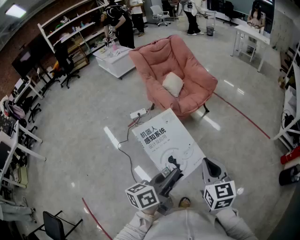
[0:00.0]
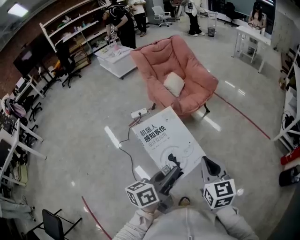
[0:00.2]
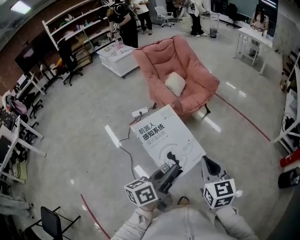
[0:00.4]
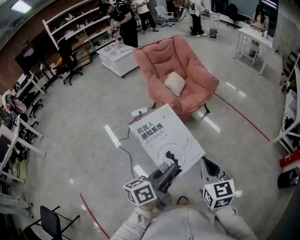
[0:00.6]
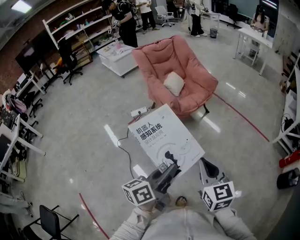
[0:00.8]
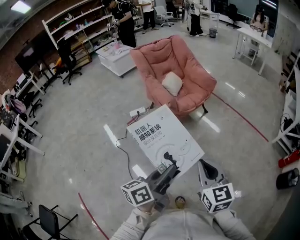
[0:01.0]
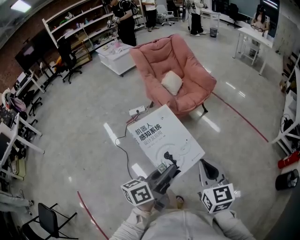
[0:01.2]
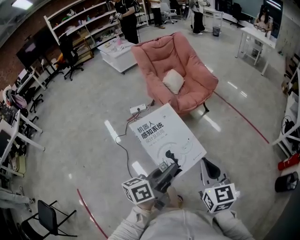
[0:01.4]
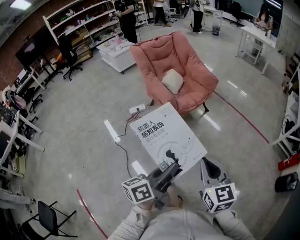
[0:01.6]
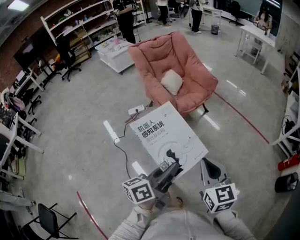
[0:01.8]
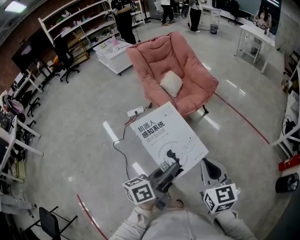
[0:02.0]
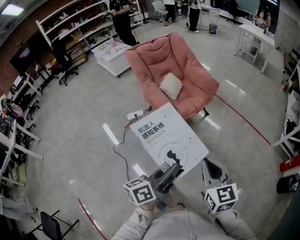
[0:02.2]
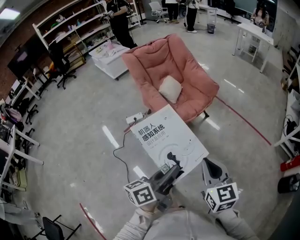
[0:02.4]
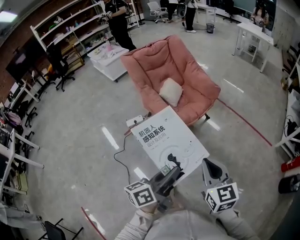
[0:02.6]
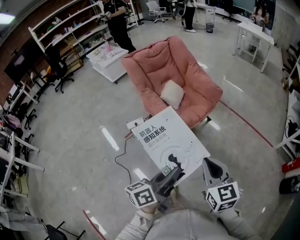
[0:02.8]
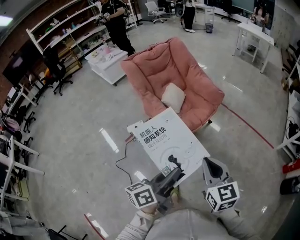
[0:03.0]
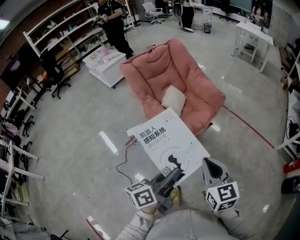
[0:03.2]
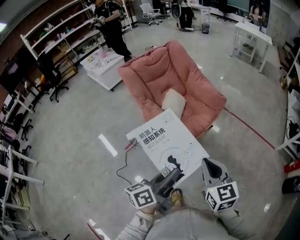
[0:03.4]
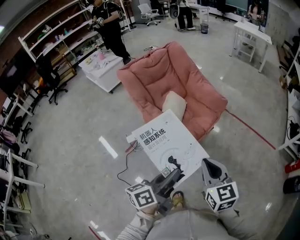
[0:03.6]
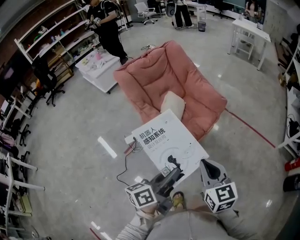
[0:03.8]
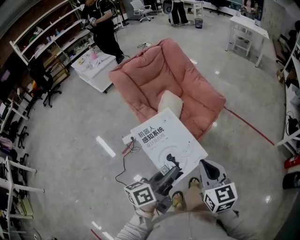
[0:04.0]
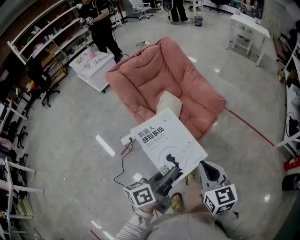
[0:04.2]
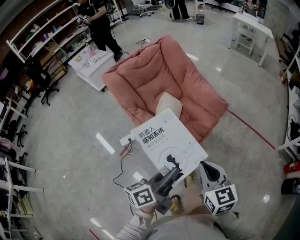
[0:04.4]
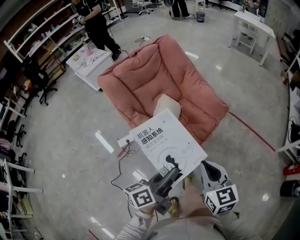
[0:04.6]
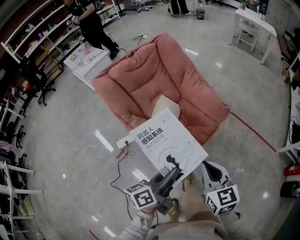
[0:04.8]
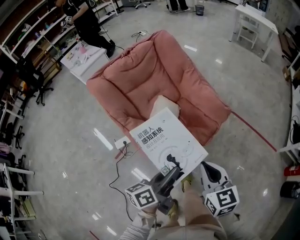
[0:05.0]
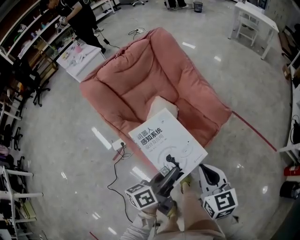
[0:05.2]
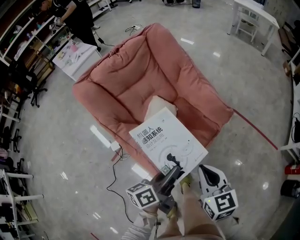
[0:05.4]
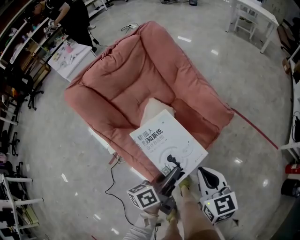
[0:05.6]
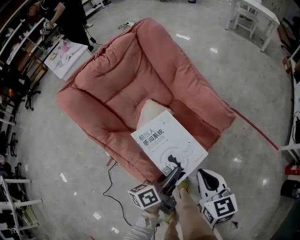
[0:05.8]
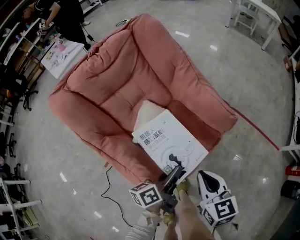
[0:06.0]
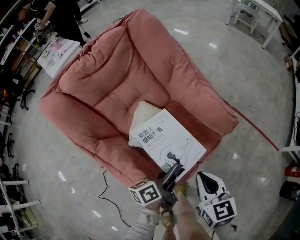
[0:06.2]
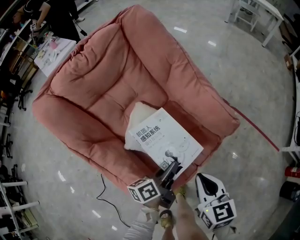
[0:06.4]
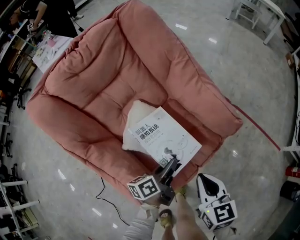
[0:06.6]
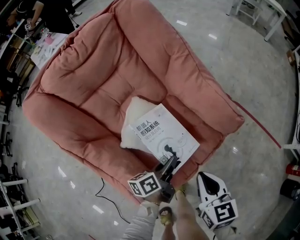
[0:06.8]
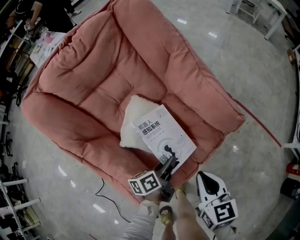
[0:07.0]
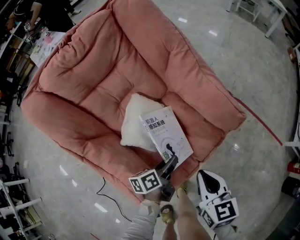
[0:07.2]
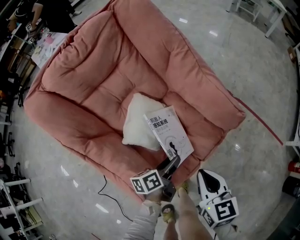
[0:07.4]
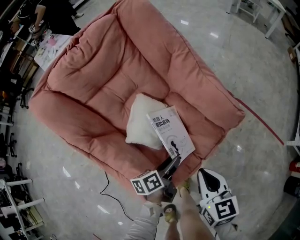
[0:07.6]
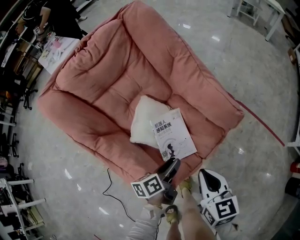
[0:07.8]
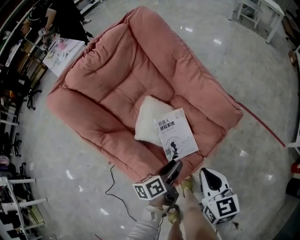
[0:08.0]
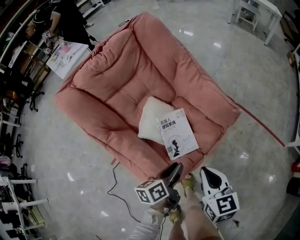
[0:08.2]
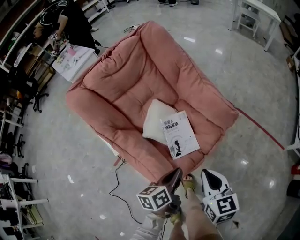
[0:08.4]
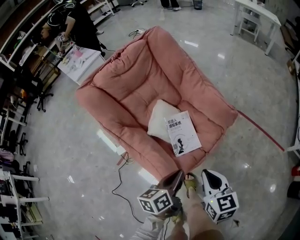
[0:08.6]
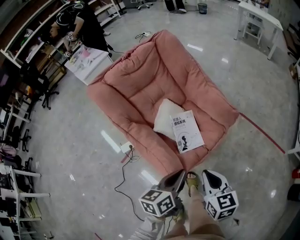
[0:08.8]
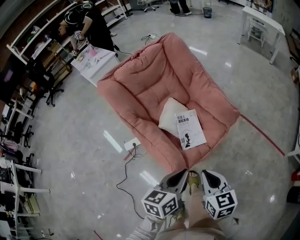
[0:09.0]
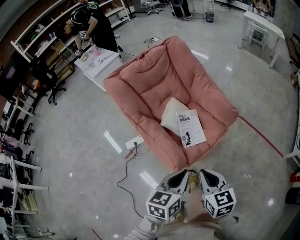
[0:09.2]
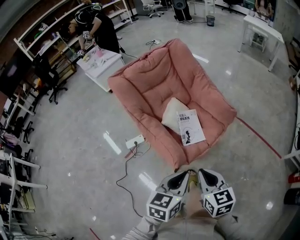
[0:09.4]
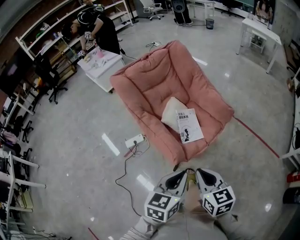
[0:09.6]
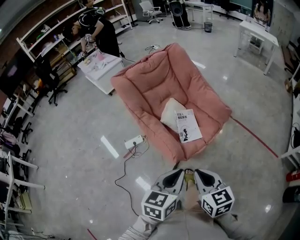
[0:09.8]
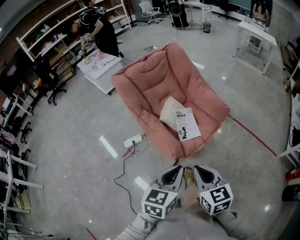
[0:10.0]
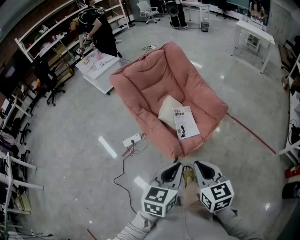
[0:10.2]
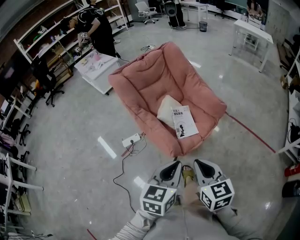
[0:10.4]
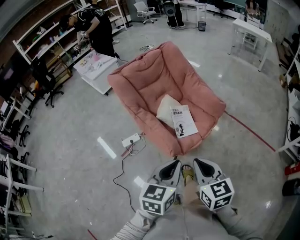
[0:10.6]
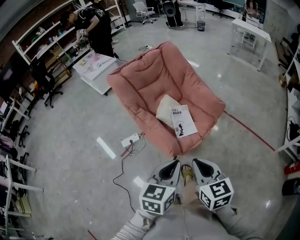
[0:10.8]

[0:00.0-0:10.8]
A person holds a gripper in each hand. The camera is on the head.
0:00.0 to 0:01.6: The grippers move only a little.
0:01.6 to 0:03.0: The two grippers go about 20 cm forward and to the left.
0:03.0 to 0:04.6: Both grippers move forward, some 20 cm.
0:04.6 to 0:06.2: The two grippers go some 25 cm forward and downward.
0:06.2 to 0:07.8: The left gripper moves downward, roughly 5 cm, and opens its fingers.
0:07.8 to 0:09.2: The right gripper travels backward and upward by some 20 cm; the left gripper moves upward and backward, approximately 30 cm, twists about 40 degrees clockwise, seen from behind, and closes up.
0:09.2 to 0:10.8: Both grippers travel together backward and upward, some 10 cm.

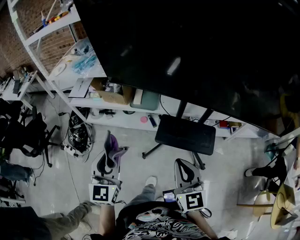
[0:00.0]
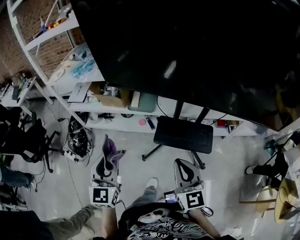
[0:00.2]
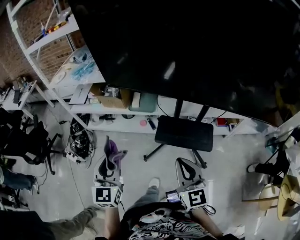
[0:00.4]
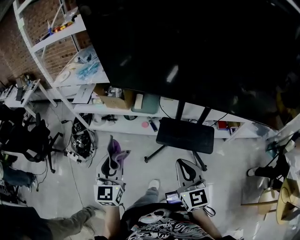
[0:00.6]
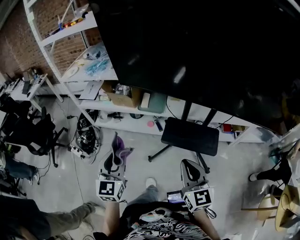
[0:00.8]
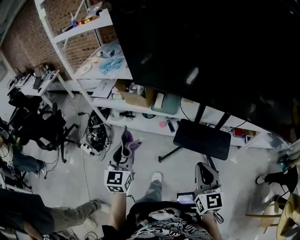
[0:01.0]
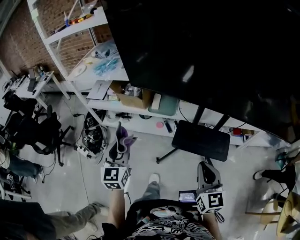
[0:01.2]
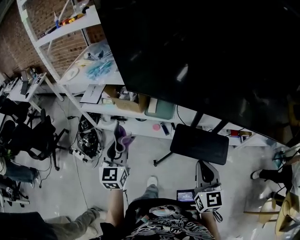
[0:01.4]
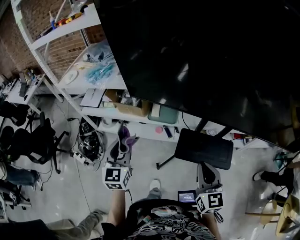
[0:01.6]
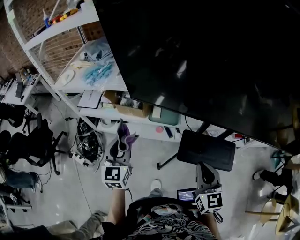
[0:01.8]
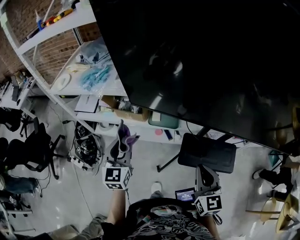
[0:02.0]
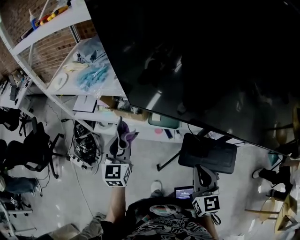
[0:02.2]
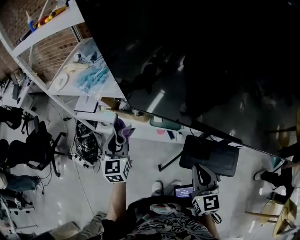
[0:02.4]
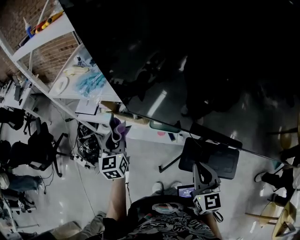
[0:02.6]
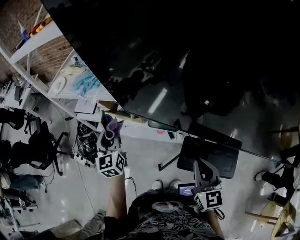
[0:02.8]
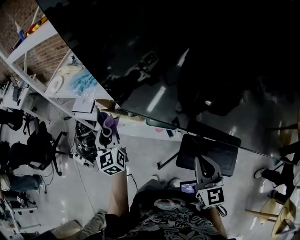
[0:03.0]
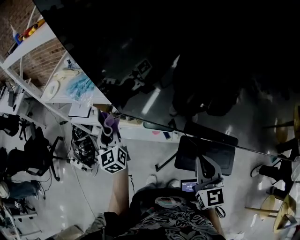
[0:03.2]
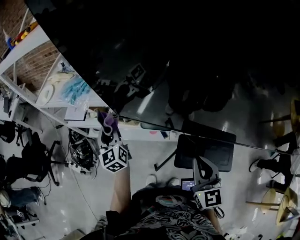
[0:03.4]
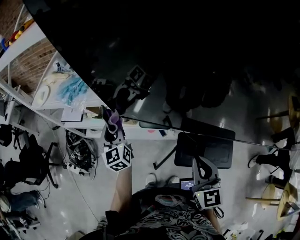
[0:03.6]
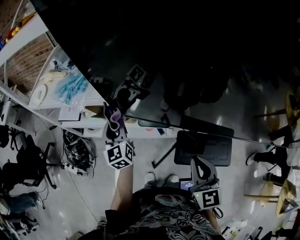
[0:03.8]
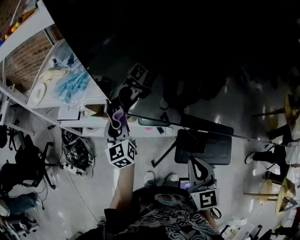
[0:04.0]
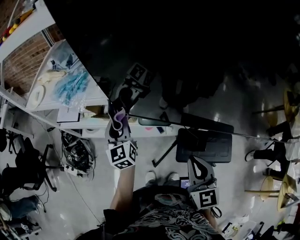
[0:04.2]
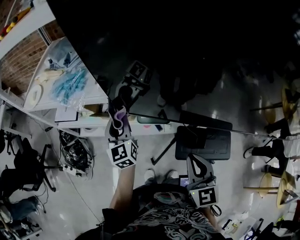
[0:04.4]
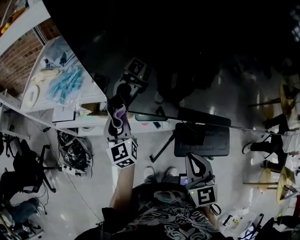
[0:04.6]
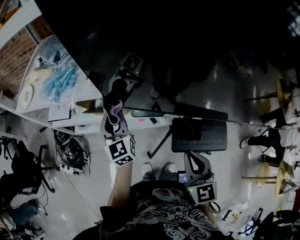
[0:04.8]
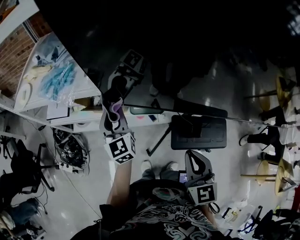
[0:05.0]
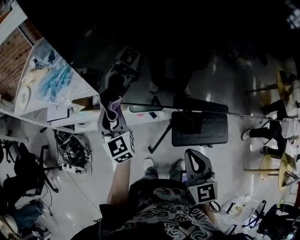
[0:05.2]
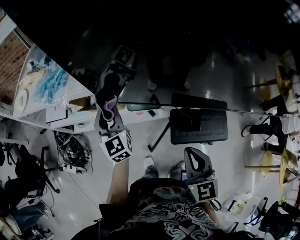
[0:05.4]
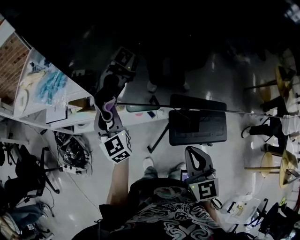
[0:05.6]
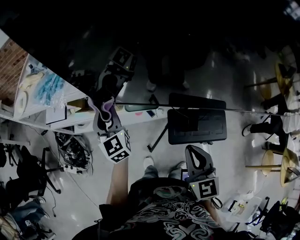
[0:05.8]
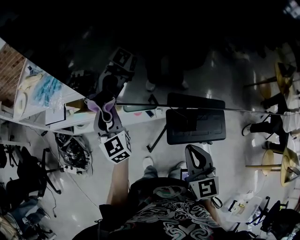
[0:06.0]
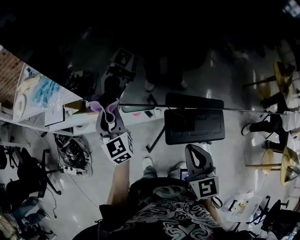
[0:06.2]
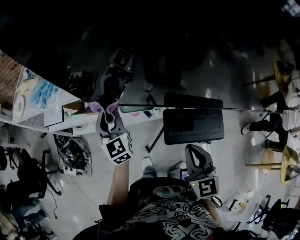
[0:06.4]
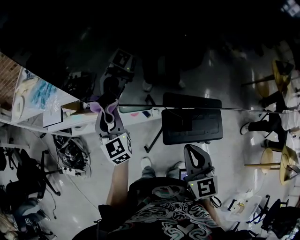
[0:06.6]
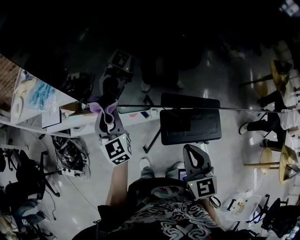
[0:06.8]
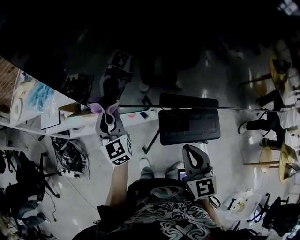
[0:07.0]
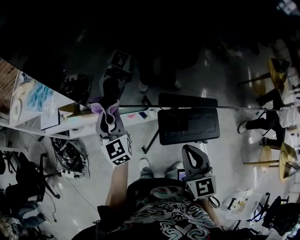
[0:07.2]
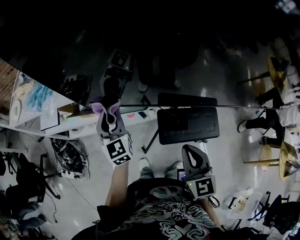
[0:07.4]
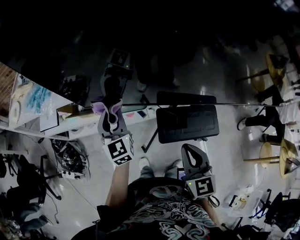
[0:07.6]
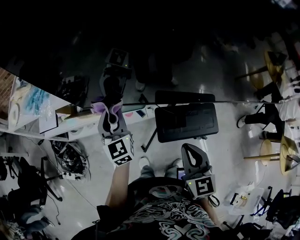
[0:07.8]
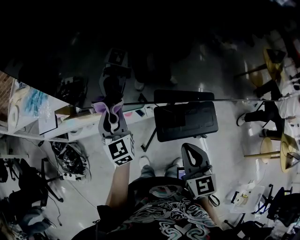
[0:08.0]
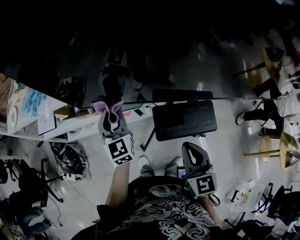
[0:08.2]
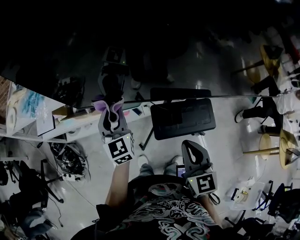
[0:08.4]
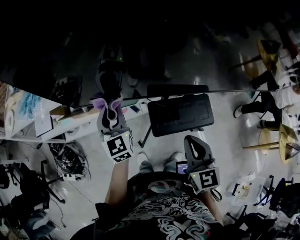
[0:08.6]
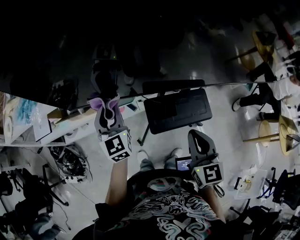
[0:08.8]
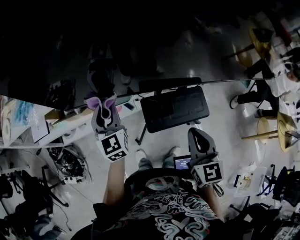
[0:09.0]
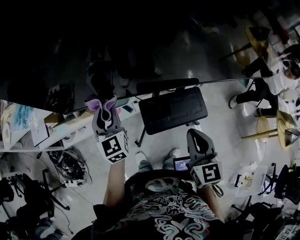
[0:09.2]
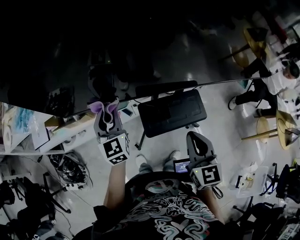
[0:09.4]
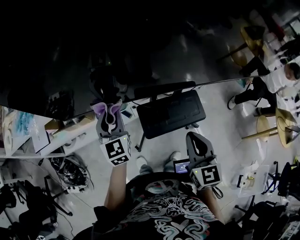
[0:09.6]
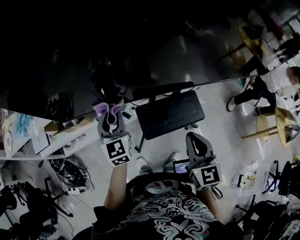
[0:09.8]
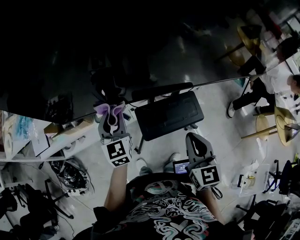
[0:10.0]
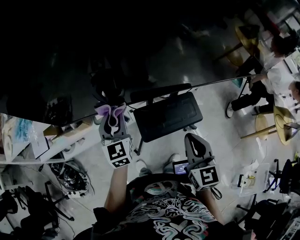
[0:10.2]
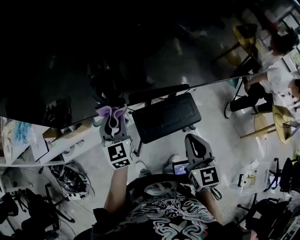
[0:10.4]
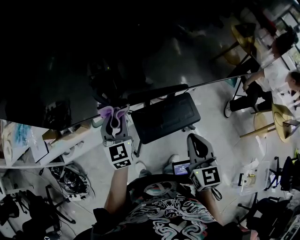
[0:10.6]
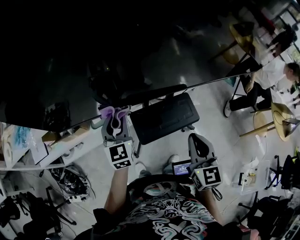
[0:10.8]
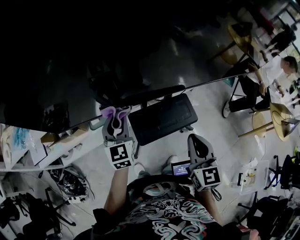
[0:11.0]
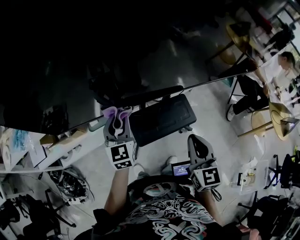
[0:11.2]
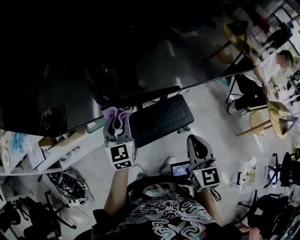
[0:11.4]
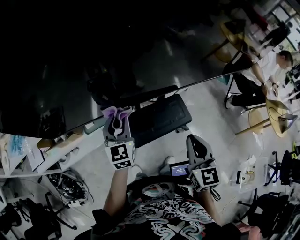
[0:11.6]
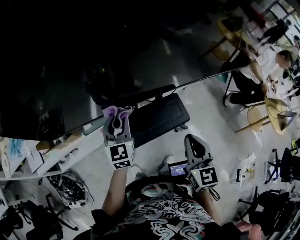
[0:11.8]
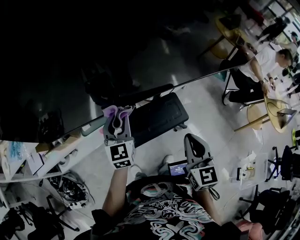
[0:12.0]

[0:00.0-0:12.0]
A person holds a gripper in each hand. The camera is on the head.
0:00.0 to 0:01.6: The right gripper travels forward by some 10 cm. The left gripper heads forward and to the left, covering about 20 cm.
0:01.6 to 0:03.0: The two grippers go roughly 20 cm forward. The left gripper turns by about 20 degrees.
0:03.0 to 0:04.4: The left gripper shifts about 5 cm forward, while the right gripper travels to the left by roughly 10 cm.
0:04.4 to 0:06.0: The left gripper moves about 5 cm. Meanwhile the right gripper travels to the right by some 5 cm.
0:06.0 to 0:07.6: The left gripper is displaced to the right by some 10 cm.
0:07.6 to 0:09.0: The two grippers go about 10 cm to the right.
0:09.0 to 0:10.4: The left gripper is displaced to the right by roughly 10 cm.
0:10.4 to 0:12.0: The grippers both shift to the right by some 10 cm.

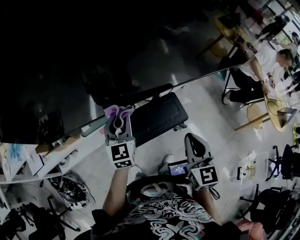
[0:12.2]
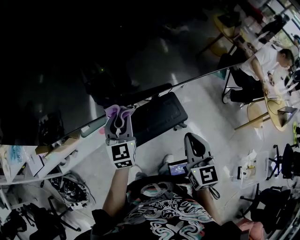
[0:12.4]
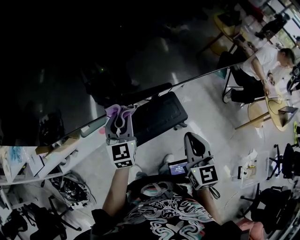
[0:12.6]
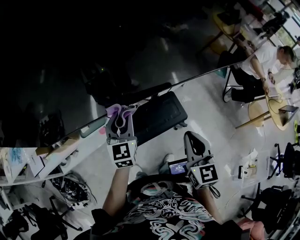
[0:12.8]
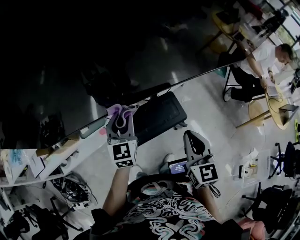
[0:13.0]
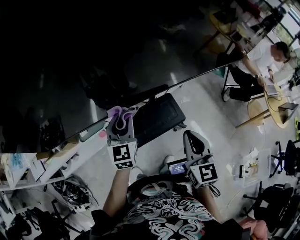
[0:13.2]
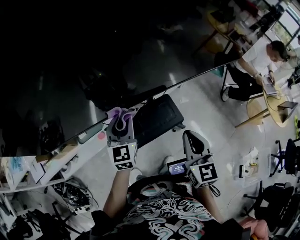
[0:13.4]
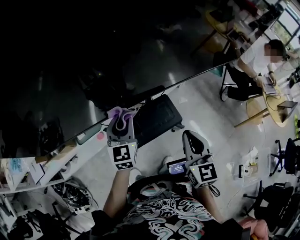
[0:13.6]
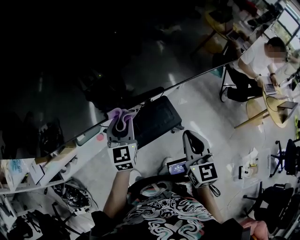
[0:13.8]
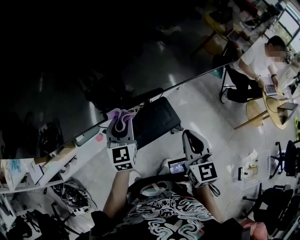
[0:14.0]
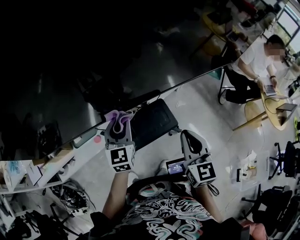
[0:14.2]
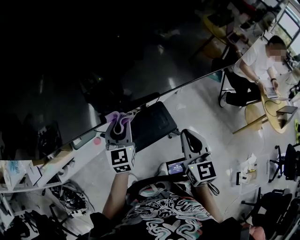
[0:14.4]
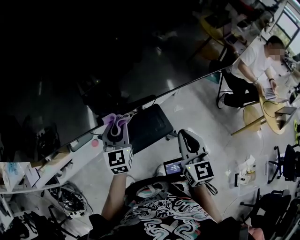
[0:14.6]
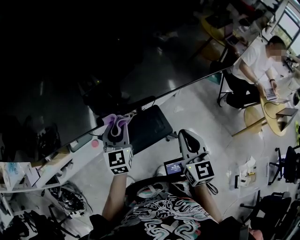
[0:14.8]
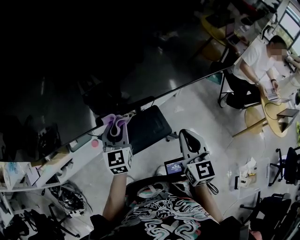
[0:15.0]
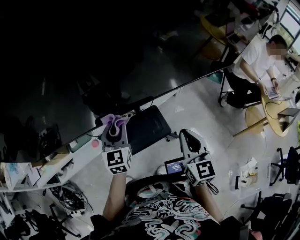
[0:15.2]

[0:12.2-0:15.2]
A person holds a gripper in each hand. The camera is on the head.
0:12.2 to 0:13.8: The grippers both shift to the right by some 10 cm.
0:13.8 to 0:15.2: The two grippers go about 10 cm to the right.
